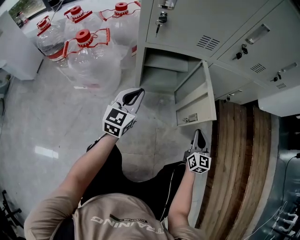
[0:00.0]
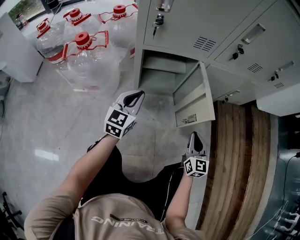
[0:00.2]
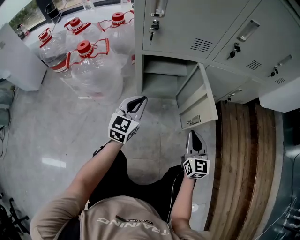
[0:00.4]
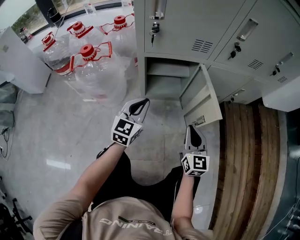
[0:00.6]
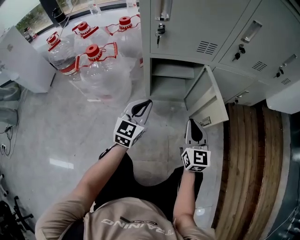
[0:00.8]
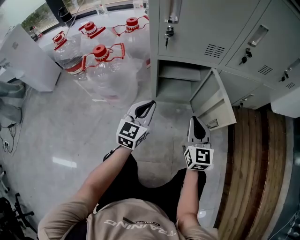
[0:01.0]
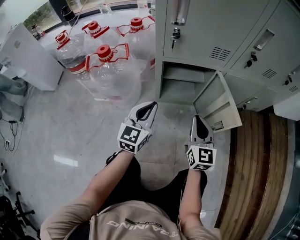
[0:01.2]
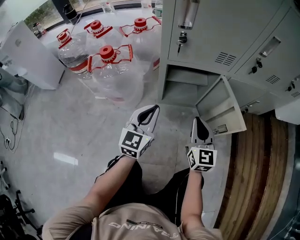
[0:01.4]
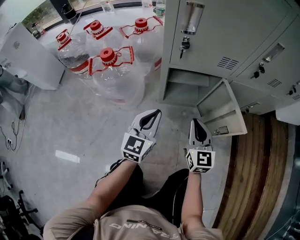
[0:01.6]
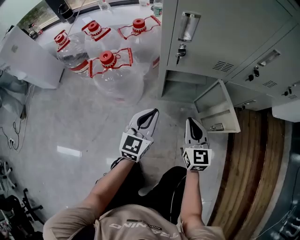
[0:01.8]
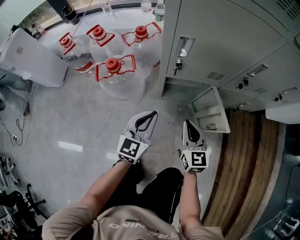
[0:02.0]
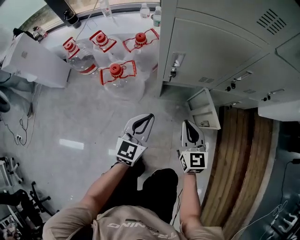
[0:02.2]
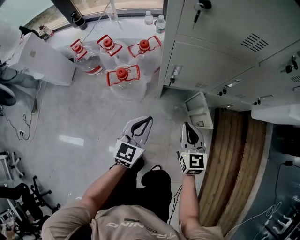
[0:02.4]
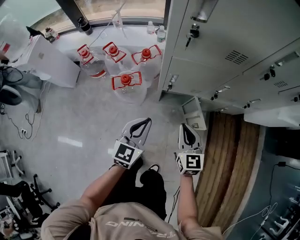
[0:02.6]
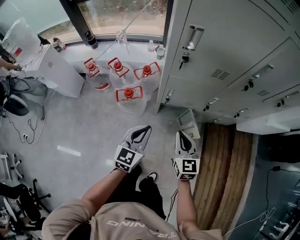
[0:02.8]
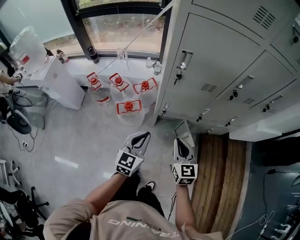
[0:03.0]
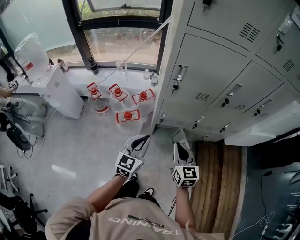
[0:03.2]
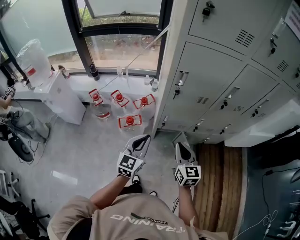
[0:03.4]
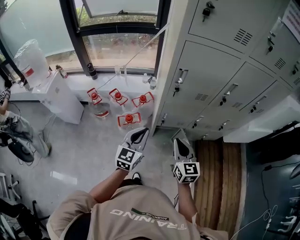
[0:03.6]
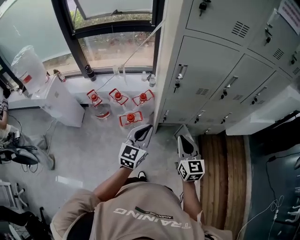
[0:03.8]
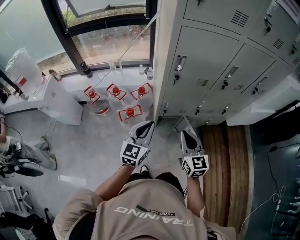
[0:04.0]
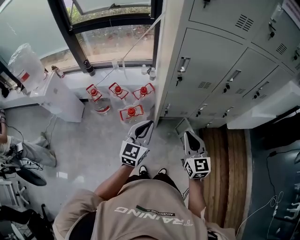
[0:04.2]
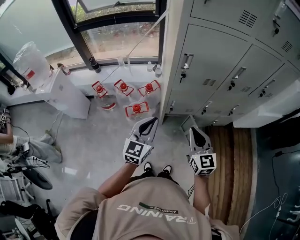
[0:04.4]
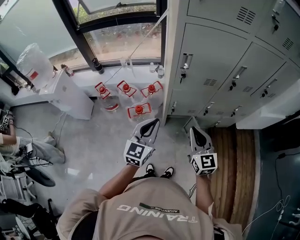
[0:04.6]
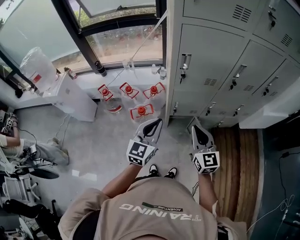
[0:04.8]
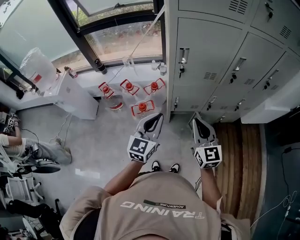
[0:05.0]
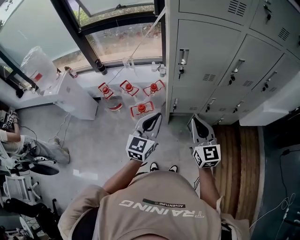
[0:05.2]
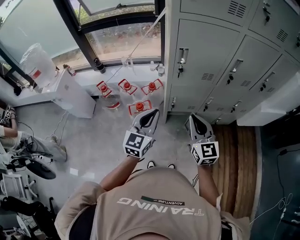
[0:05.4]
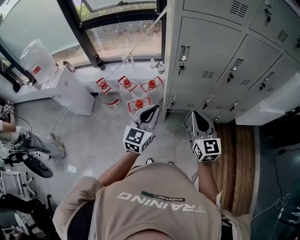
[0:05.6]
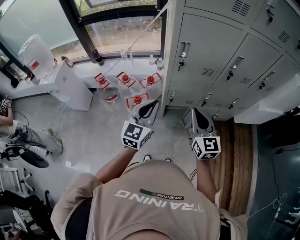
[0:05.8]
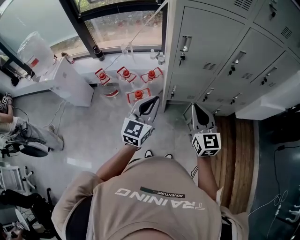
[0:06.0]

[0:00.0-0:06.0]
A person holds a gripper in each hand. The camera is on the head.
0:00.0 to 0:01.6: The right gripper is displaced to the left and upward by about 25 cm. Meanwhile the left gripper moves roughly 5 cm.
0:01.6 to 0:03.0: Both grippers move upward, some 50 cm.
0:03.0 to 0:04.4: The two grippers go roughly 10 cm upward.
0:04.4 to 0:06.0: The grippers stay close to where they were, moving slightly.

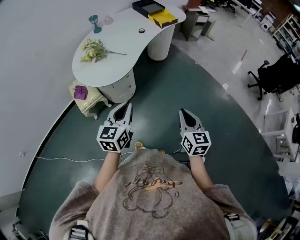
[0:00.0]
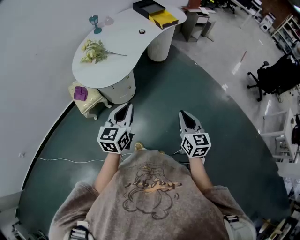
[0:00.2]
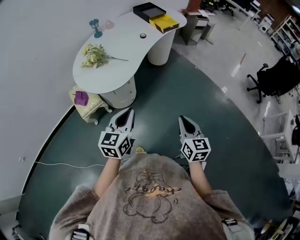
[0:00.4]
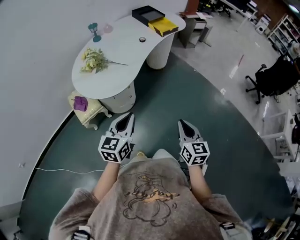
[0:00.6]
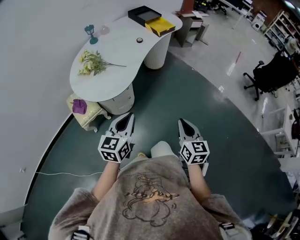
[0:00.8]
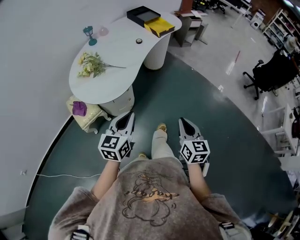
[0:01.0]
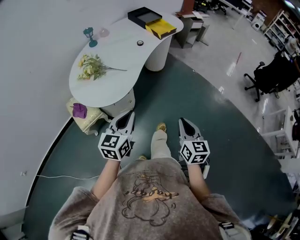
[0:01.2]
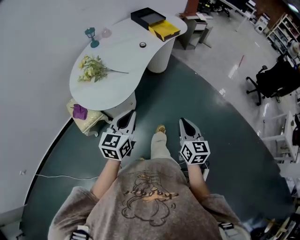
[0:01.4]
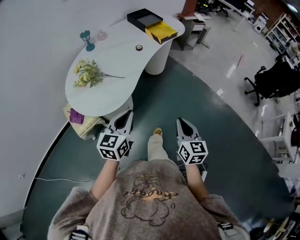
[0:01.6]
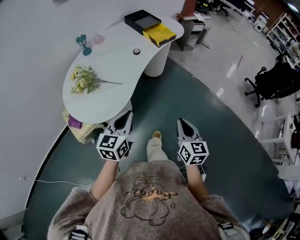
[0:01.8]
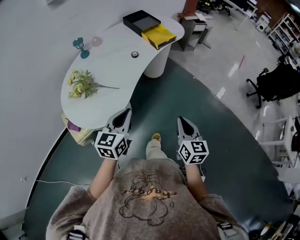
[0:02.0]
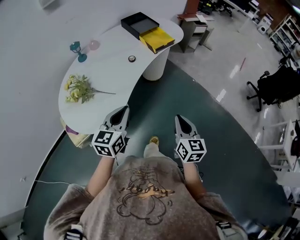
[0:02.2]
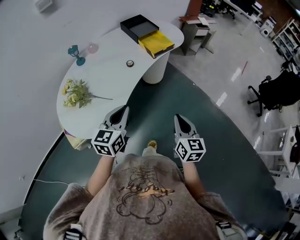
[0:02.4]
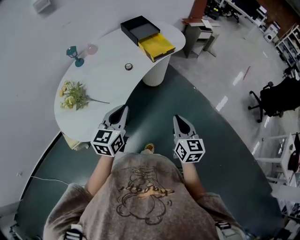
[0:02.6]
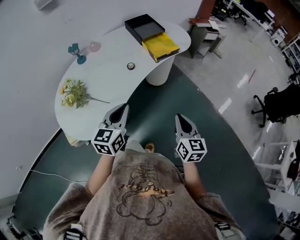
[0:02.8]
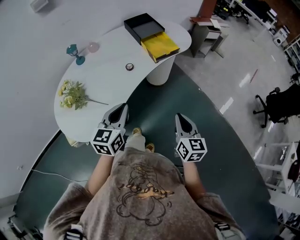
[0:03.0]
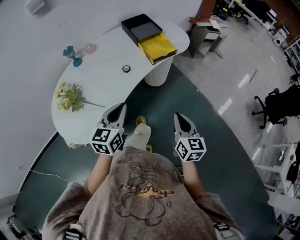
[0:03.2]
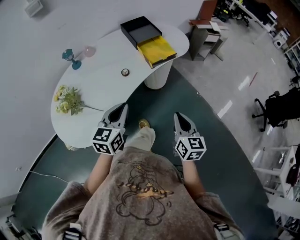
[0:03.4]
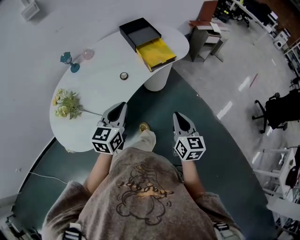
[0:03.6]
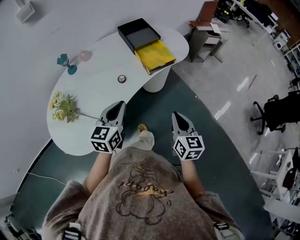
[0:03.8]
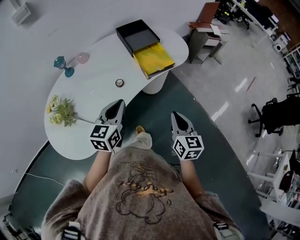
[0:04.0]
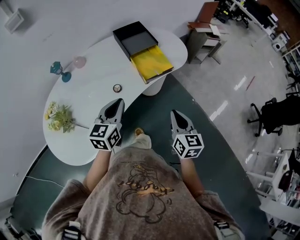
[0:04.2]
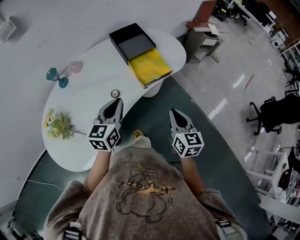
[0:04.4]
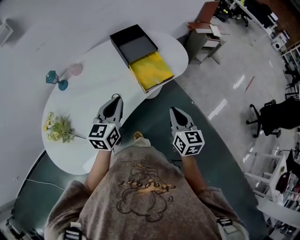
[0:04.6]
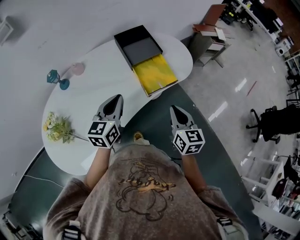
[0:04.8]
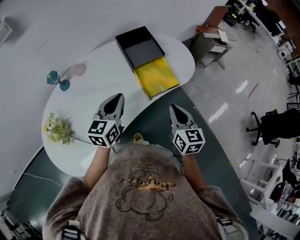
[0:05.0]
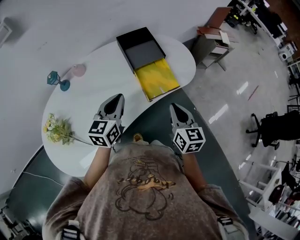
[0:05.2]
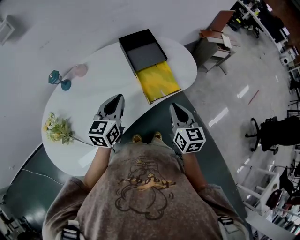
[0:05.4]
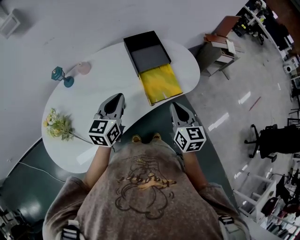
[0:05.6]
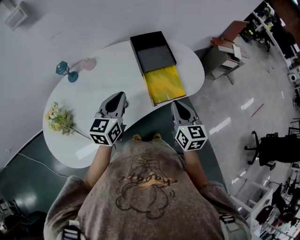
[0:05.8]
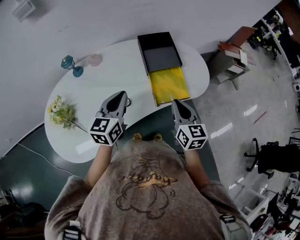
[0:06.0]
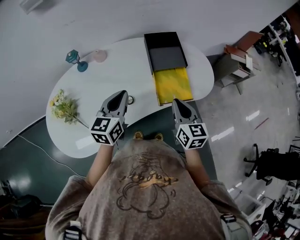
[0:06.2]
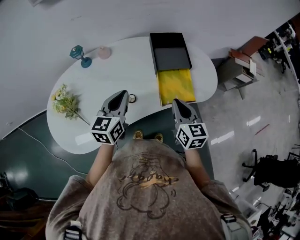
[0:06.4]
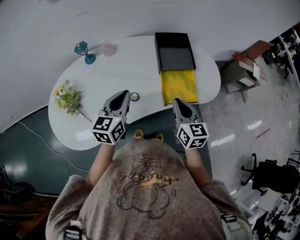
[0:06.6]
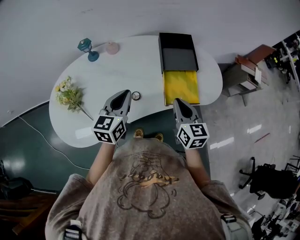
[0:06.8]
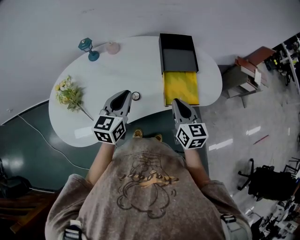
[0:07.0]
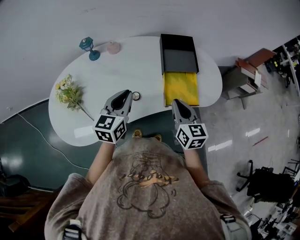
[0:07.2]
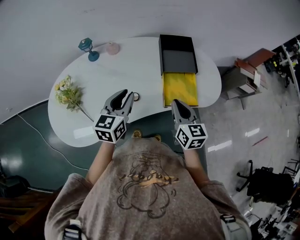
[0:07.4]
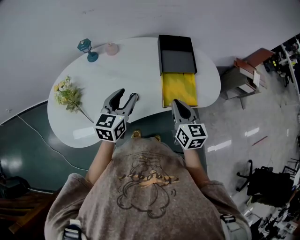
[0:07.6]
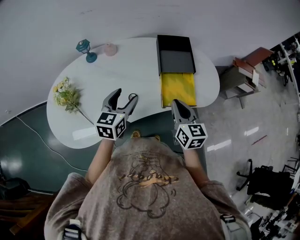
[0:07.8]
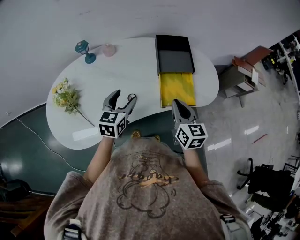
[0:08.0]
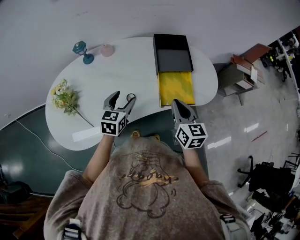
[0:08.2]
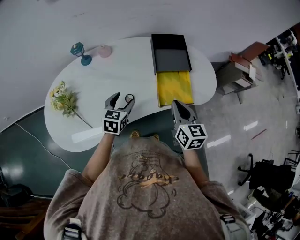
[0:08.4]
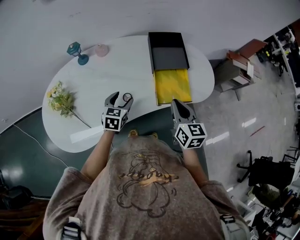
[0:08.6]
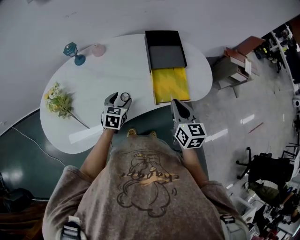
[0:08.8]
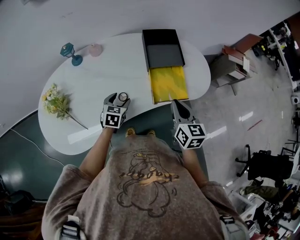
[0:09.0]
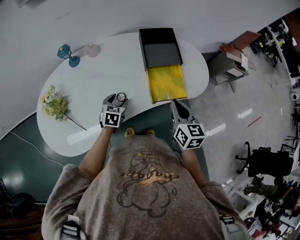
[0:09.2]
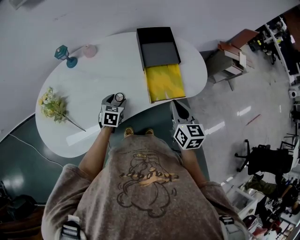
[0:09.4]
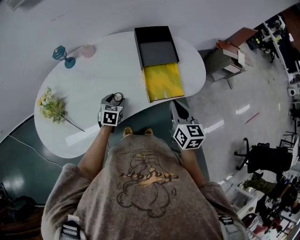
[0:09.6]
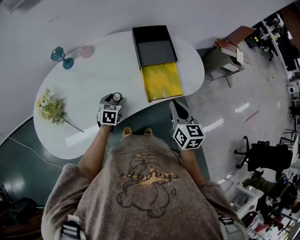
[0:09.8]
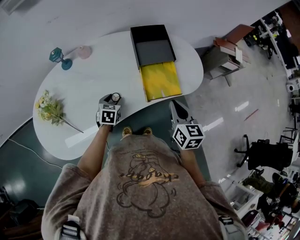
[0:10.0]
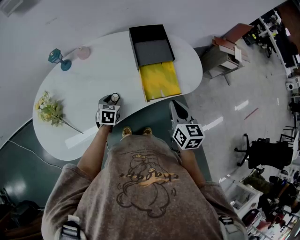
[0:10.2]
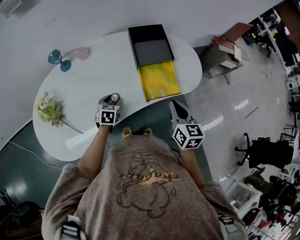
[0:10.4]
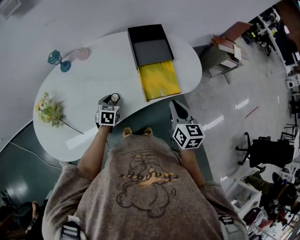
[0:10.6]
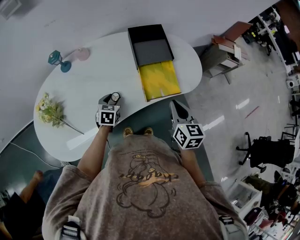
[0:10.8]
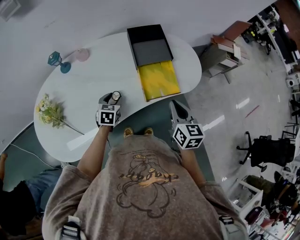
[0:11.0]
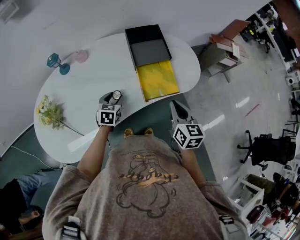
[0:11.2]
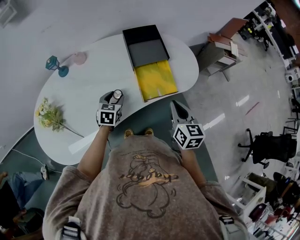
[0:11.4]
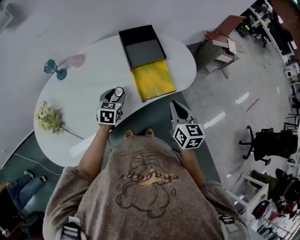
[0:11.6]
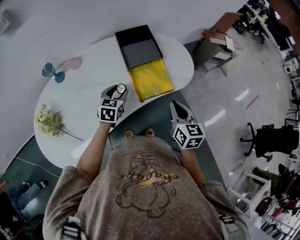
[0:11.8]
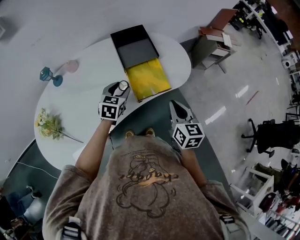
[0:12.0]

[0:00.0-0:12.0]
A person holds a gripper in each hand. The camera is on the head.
0:00.0 to 0:01.6: The two grippers go roughly 15 cm forward.
0:01.6 to 0:03.0: Both grippers travel together forward, about 25 cm.
0:03.0 to 0:04.4: The two grippers go some 20 cm forward.
0:04.4 to 0:06.0: The right gripper travels forward by about 20 cm; the left gripper goes about 10 cm forward.
0:06.0 to 0:07.6: The left gripper opens.
0:07.6 to 0:09.0: The left gripper is displaced downward by roughly 20 cm, and swivels roughly 30 degrees.
0:09.0 to 0:10.4: There are only small adjustments of the grippers.
0:10.4 to 0:12.0: The right gripper changes place by about 5 cm, while the left gripper heads to the right, upward and forward, covering about 15 cm, and swivels roughly 20 degrees.

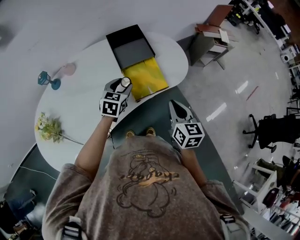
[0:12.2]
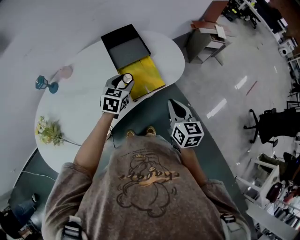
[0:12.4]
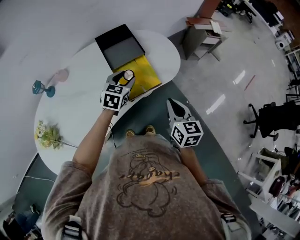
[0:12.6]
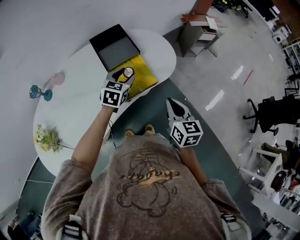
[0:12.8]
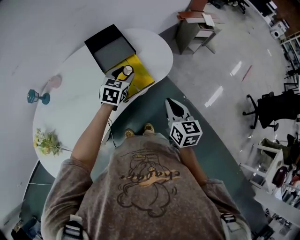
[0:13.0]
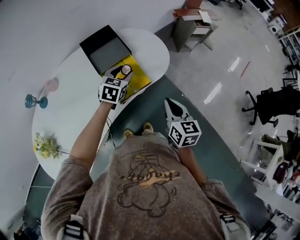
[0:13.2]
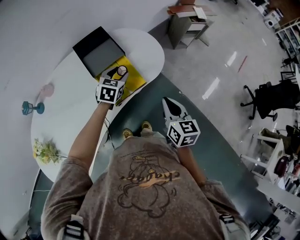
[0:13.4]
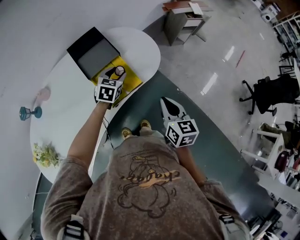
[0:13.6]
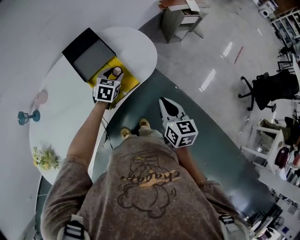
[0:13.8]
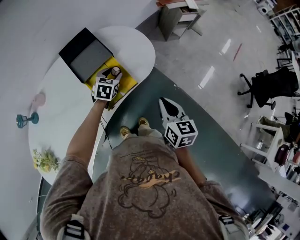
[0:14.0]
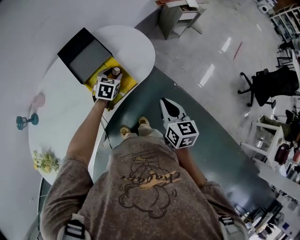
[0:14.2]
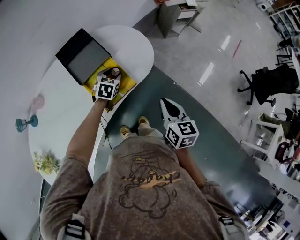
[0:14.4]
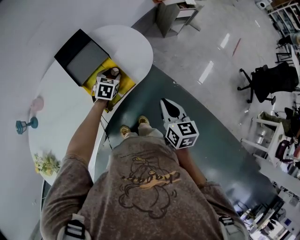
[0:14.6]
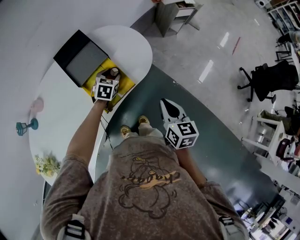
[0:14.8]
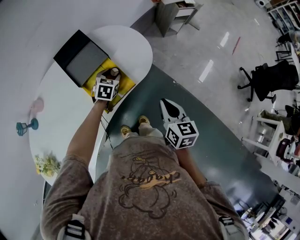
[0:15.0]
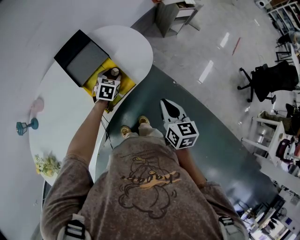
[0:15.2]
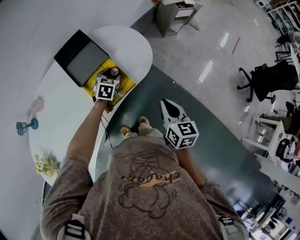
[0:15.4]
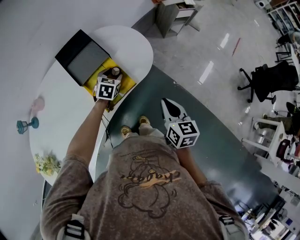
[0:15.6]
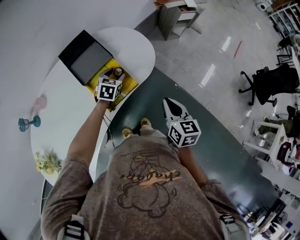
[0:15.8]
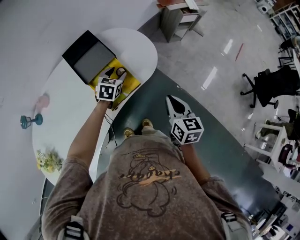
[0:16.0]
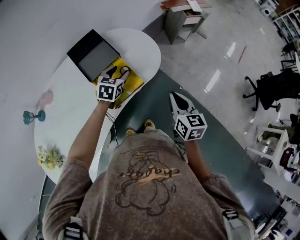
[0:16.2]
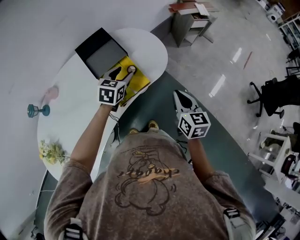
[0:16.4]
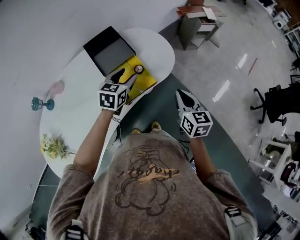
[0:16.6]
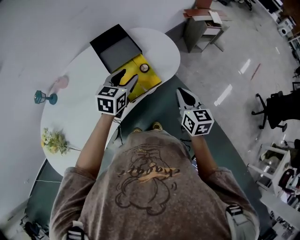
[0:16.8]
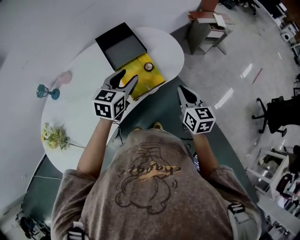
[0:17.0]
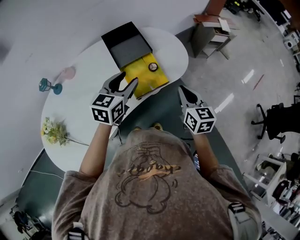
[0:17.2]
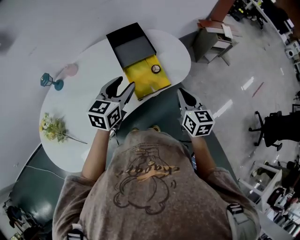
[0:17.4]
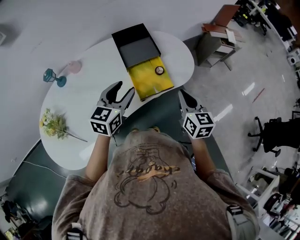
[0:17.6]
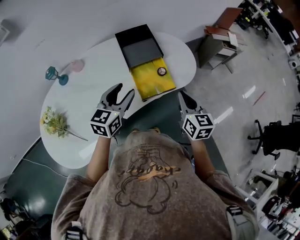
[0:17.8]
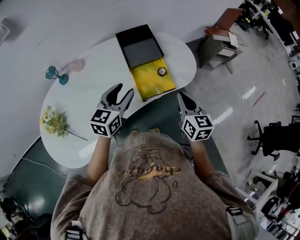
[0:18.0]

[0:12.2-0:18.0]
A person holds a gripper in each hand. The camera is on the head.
0:12.2 to 0:13.6: The left gripper heads to the right and forward, covering some 15 cm. Meanwhile the right gripper travels to the right by some 10 cm.
0:13.6 to 0:15.0: The left gripper shifts approximately 5 cm downward.
0:15.0 to 0:16.6: The left gripper heads upward and backward, covering approximately 15 cm.
0:16.6 to 0:18.0: The right gripper is displaced to the left by approximately 10 cm. Meanwhile the left gripper shifts roughly 15 cm to the left, backward and upward, and rotates some 20 degrees.
